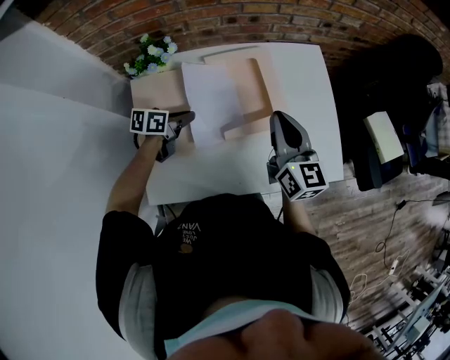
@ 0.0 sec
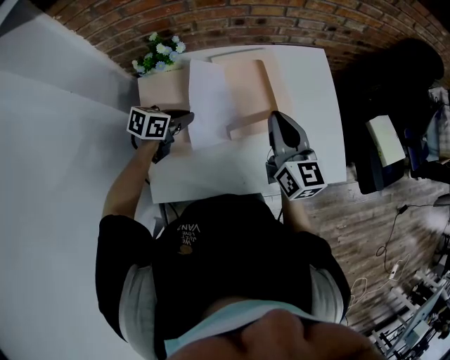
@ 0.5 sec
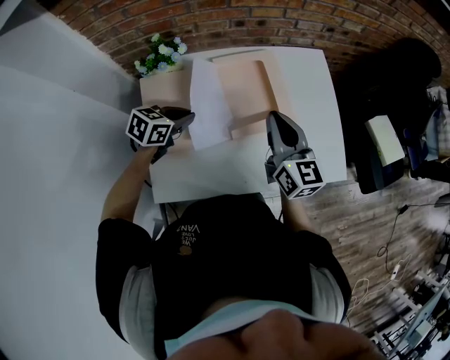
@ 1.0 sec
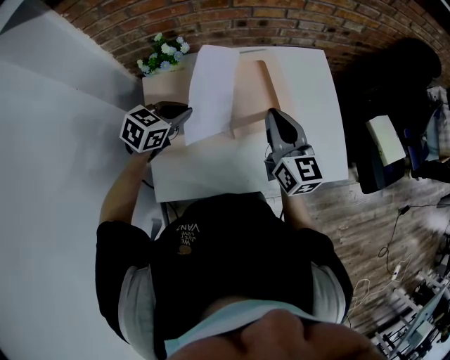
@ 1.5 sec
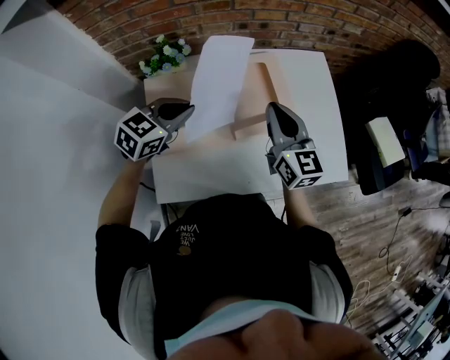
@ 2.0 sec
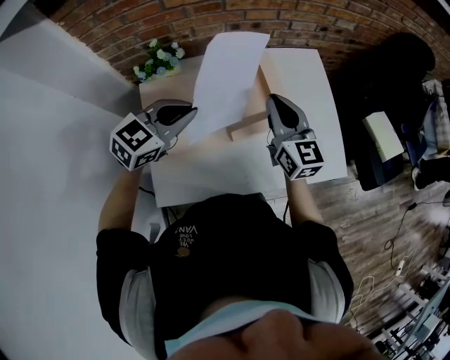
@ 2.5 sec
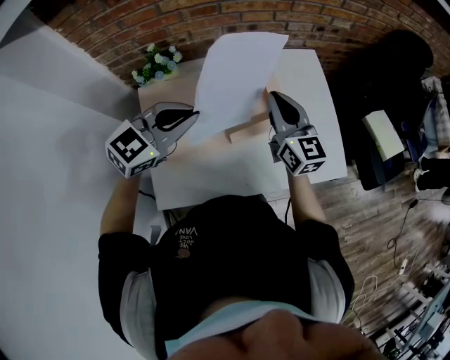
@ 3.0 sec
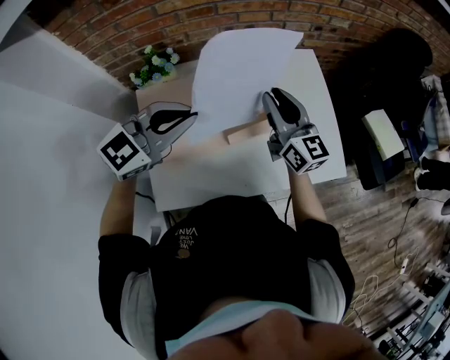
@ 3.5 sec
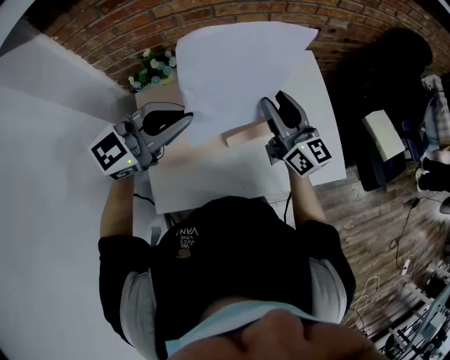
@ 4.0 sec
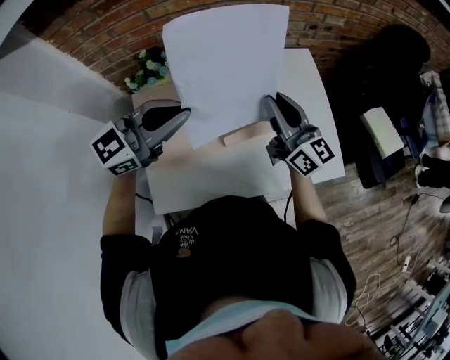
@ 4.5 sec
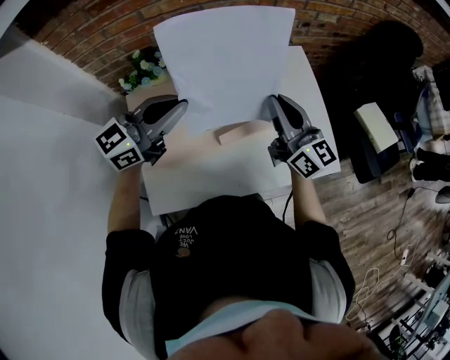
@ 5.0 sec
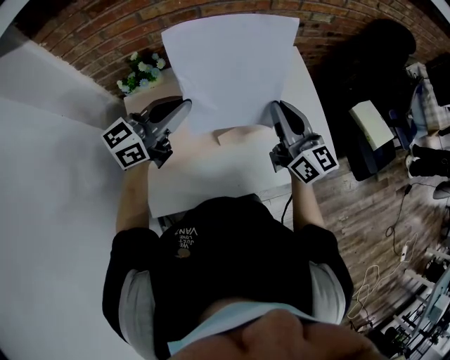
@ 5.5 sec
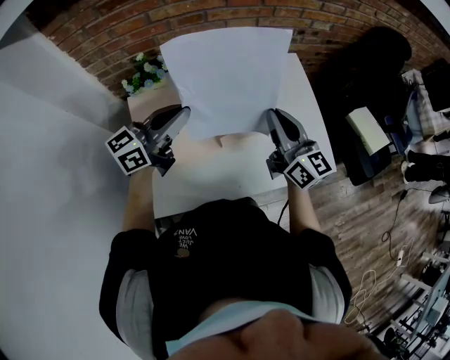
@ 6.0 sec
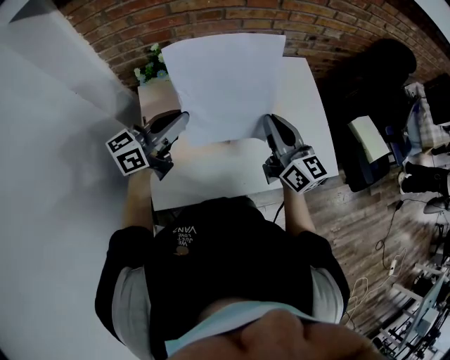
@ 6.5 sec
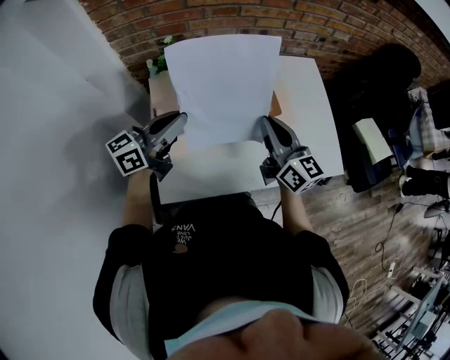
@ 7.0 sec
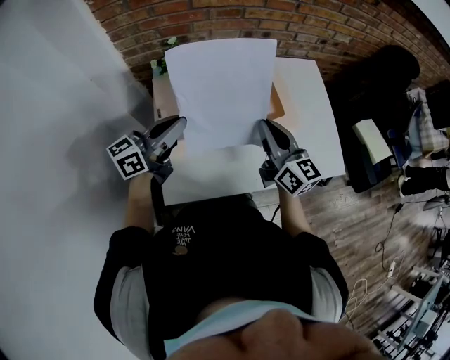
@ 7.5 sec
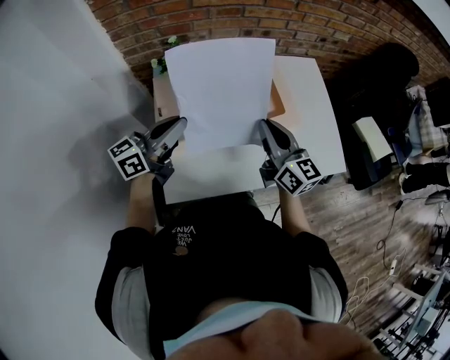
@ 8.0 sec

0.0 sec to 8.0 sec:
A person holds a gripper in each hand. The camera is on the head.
0.0 sec to 2.0 sec: The left gripper goes some 15 cm upward, and twists about 50 degrees clockwise, seen from behind.
2.0 sec to 4.0 sec: The right gripper opens its fingers. Meanwhile the left gripper travels upward and to the right by about 15 cm, and rotates some 30 degrees.
4.0 sec to 6.0 sec: The left gripper heads downward, covering approximately 5 cm, and swivels about 30 degrees, while the right gripper changes place by some 5 cm, and closes up.
6.0 sec to 8.0 sec: The two grippers go about 10 cm to the left and backward.

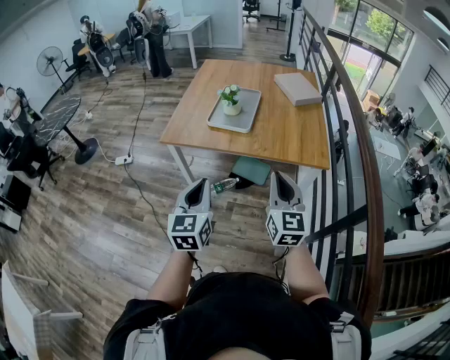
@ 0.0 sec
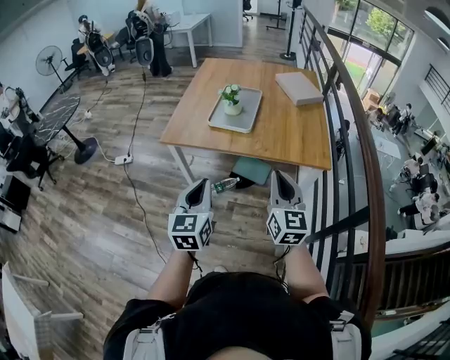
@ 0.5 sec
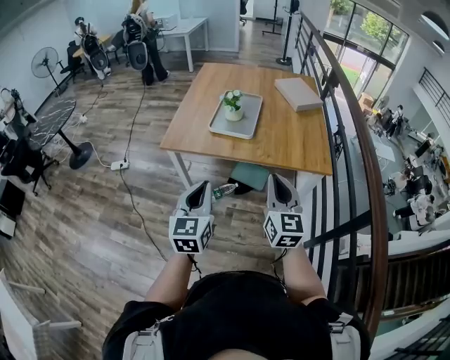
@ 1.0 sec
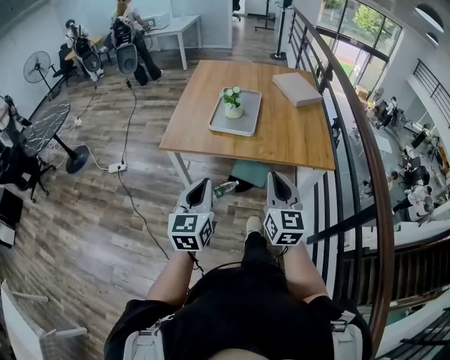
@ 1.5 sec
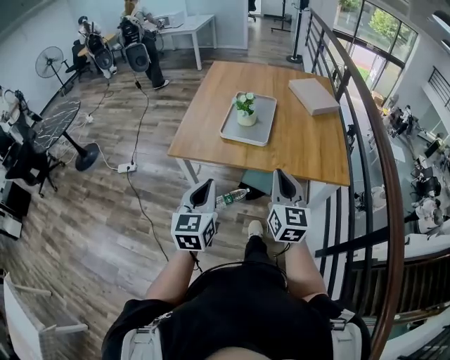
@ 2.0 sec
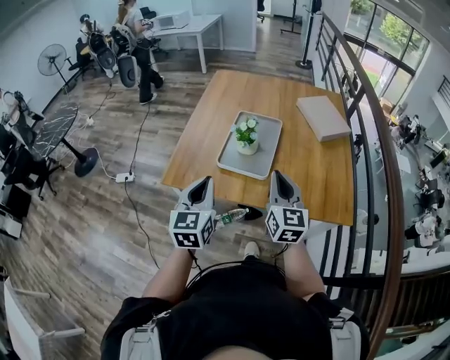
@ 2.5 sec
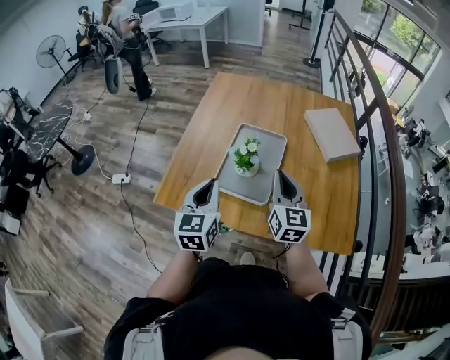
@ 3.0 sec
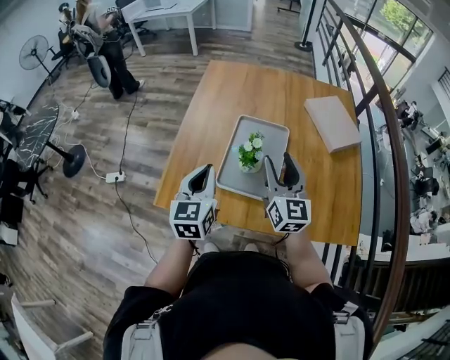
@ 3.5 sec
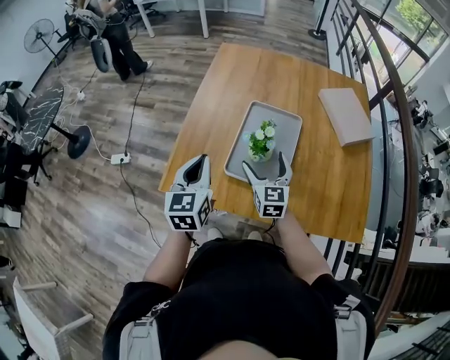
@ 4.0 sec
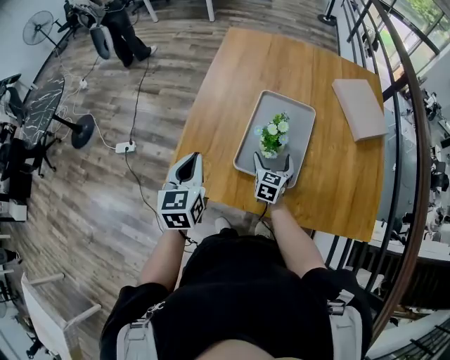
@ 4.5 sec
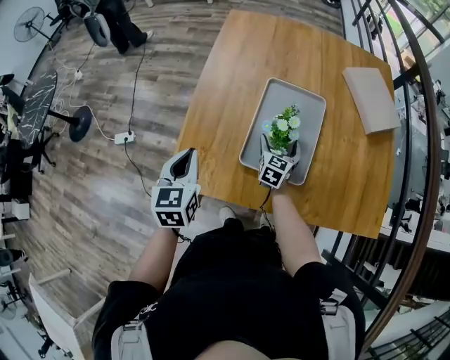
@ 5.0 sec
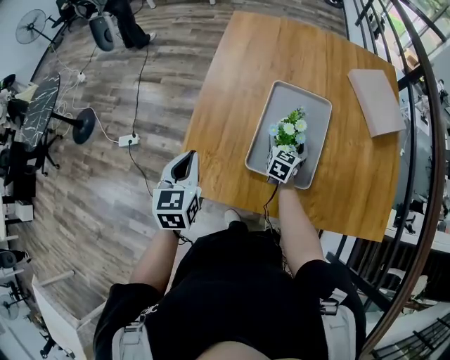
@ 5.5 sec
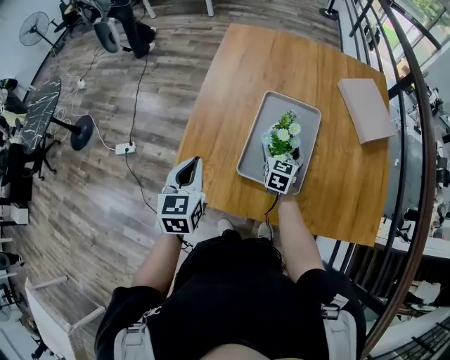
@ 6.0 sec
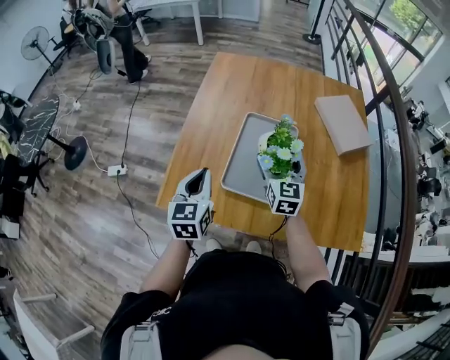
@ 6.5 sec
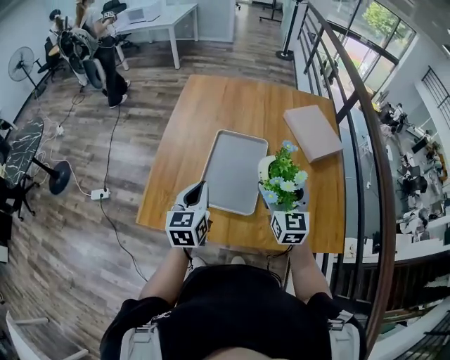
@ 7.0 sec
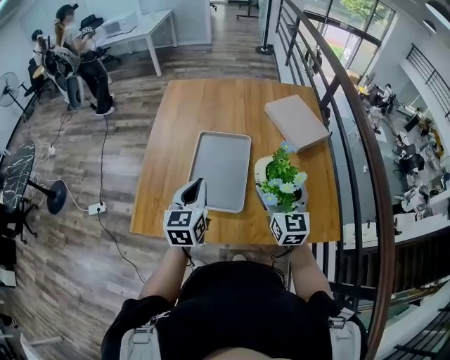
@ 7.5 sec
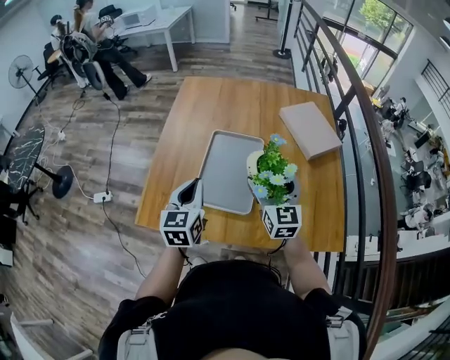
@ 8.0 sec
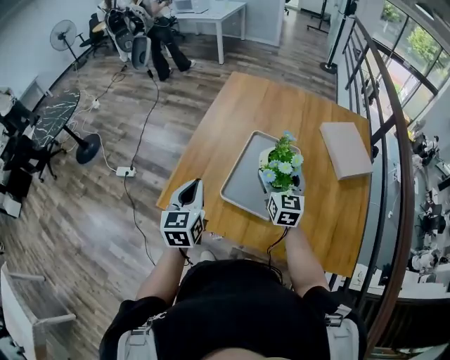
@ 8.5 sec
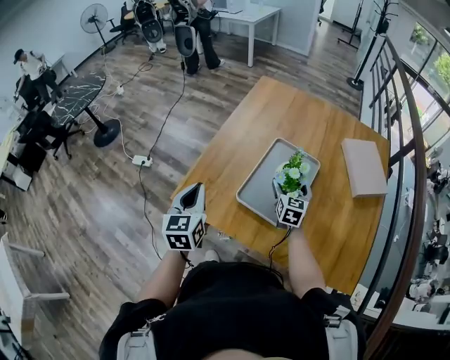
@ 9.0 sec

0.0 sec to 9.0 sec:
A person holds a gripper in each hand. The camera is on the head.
0.0 sec to 2.0 sec: The grippers both shift forward and to the left by approximately 15 cm.
2.0 sec to 4.5 sec: Both grippers are carried forward, approximately 50 cm. The right gripper moves downward, roughly 25 cm, changes its angle by about 30 degrees, and opens up.
4.5 sec to 7.0 sec: The right gripper goes roughly 25 cm upward and to the right, and changes its angle by roughly 20 degrees; the left gripper heads to the right, covering about 15 cm.
7.0 sec to 9.0 sec: The left gripper heads to the left and backward, covering about 15 cm, and rotates about 20 degrees; the right gripper travels downward, forward and to the left by about 20 cm.

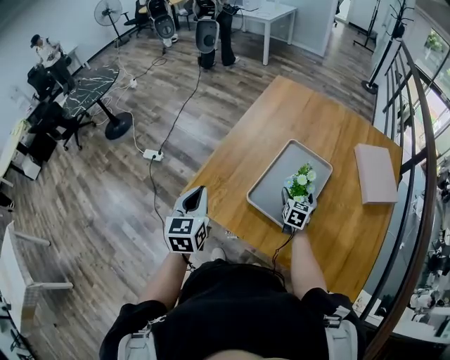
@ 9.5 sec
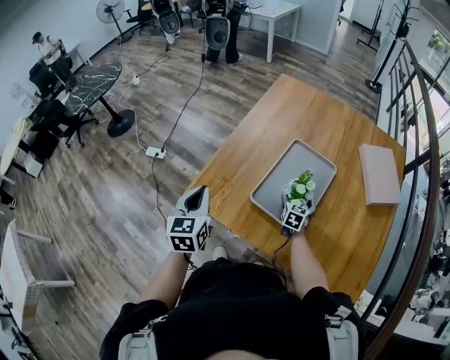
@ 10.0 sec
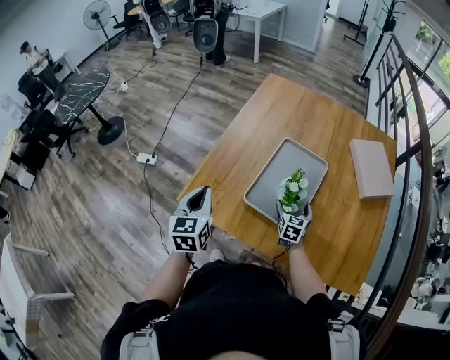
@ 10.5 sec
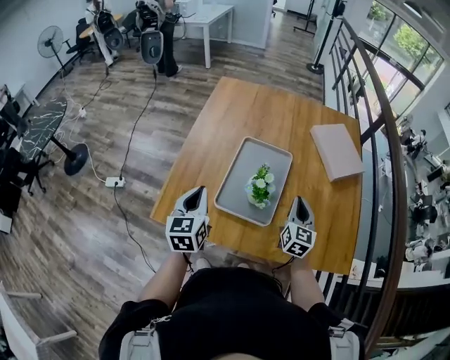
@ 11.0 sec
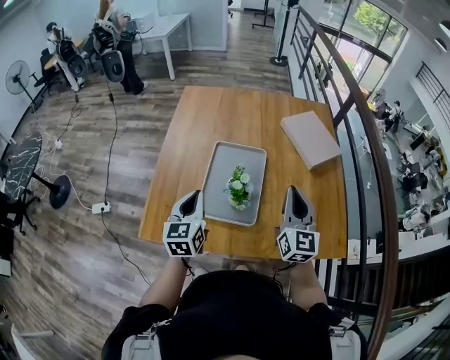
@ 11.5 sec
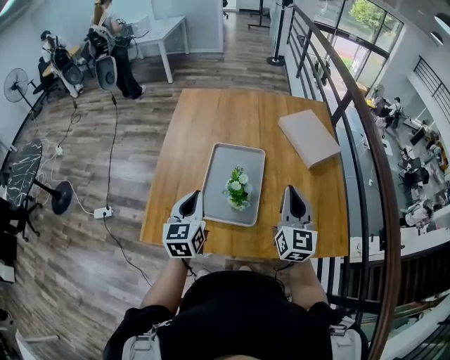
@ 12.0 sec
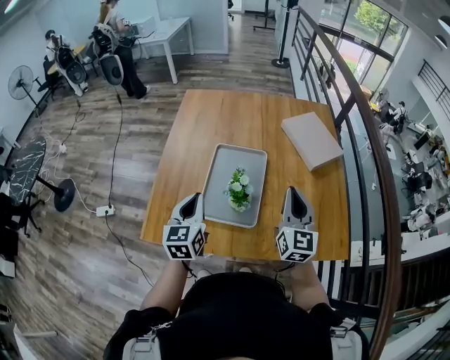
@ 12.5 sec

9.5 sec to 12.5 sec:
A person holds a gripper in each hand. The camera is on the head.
9.5 sec to 11.0 sec: The left gripper is displaced to the right and forward by approximately 10 cm. The right gripper is displaced upward, backward and to the right by some 20 cm, rotates roughly 20 degrees, and closes.
11.0 sec to 12.5 sec: The right gripper is displaced upward by roughly 10 cm; the left gripper heads to the right, covering about 5 cm.

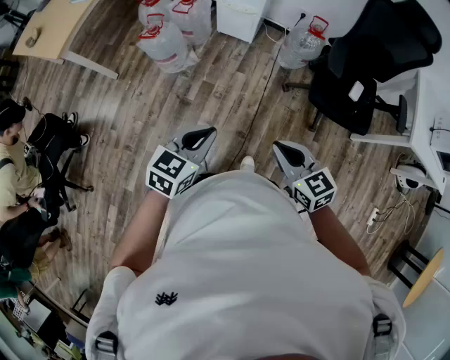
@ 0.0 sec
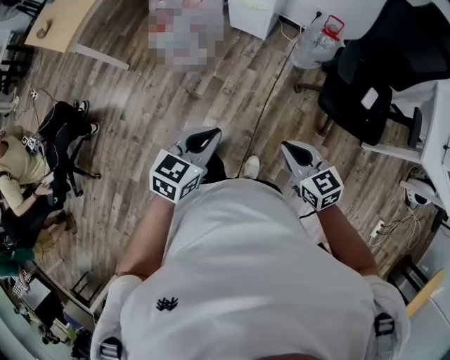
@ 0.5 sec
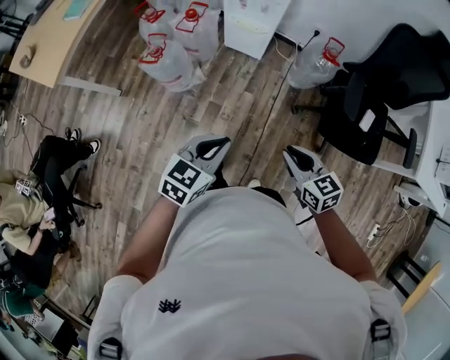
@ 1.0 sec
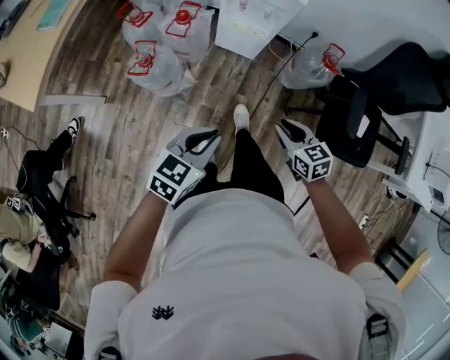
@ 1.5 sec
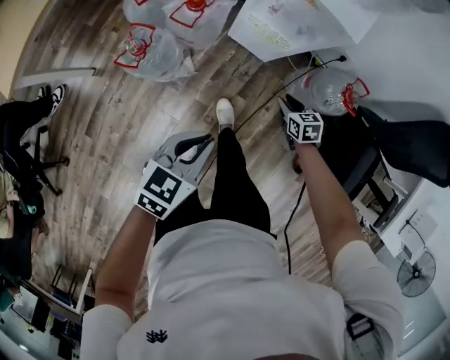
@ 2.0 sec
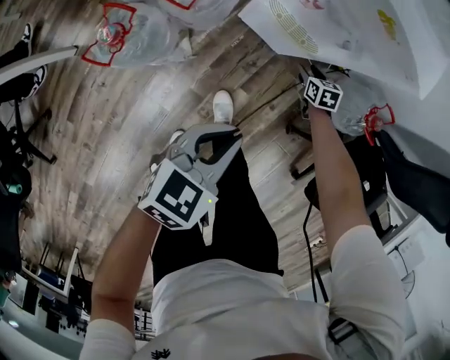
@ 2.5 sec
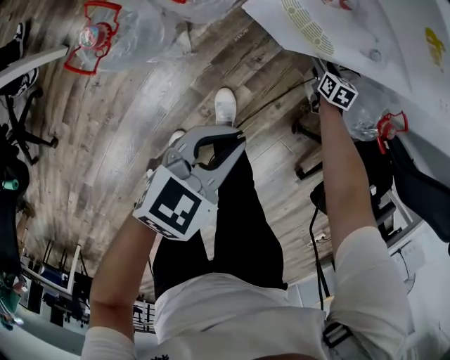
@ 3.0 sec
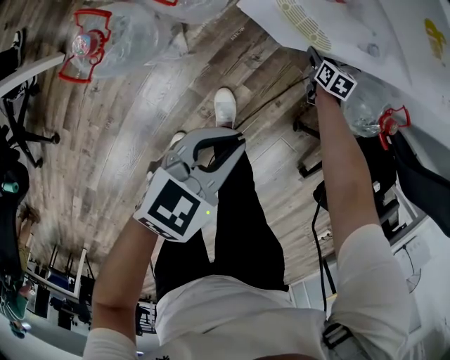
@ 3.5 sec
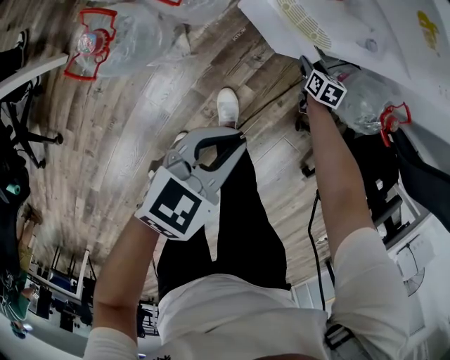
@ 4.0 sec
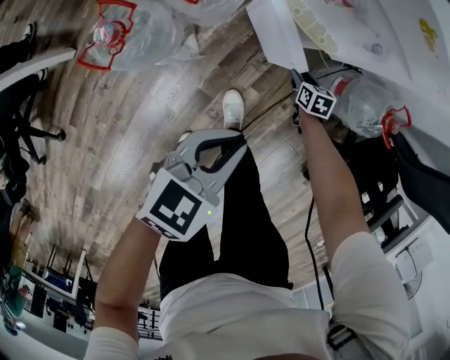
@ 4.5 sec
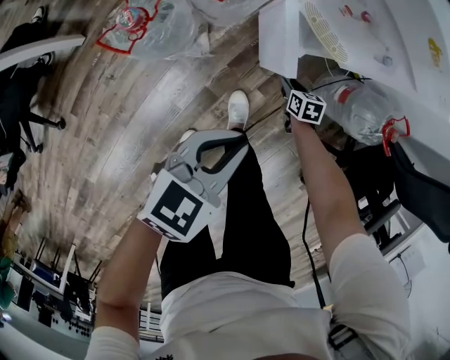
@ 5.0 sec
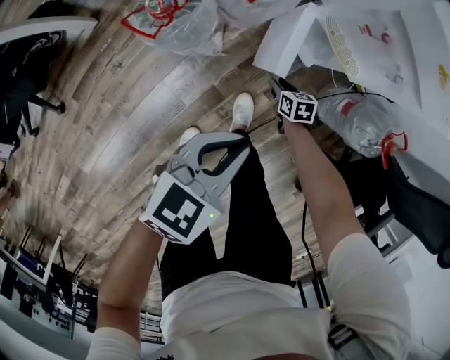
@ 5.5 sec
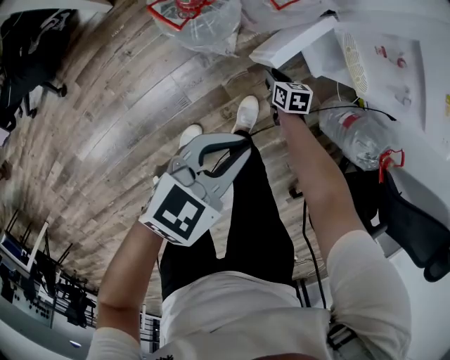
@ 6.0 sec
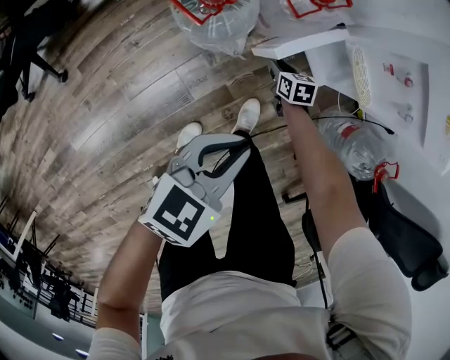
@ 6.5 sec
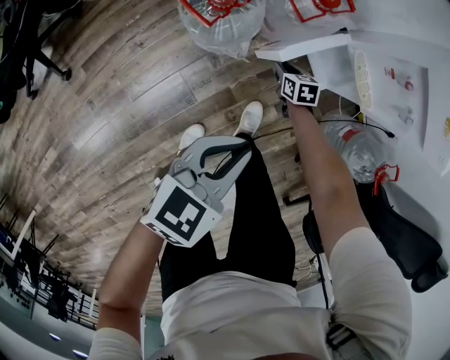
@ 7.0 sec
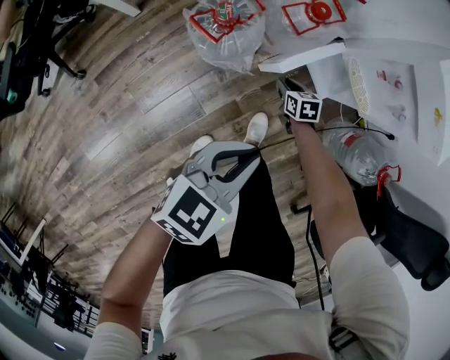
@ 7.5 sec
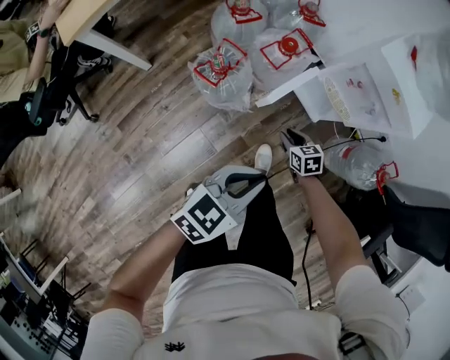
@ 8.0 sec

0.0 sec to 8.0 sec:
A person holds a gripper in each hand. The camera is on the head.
0.0 sec to 2.0 sec: The pair of grippers is taken forward, some 50 cm. The right gripper shifts some 35 cm downward, swivels approximately 30 degrees, and opens up.
2.0 sec to 4.0 sec: The left gripper is displaced downward and forward by some 20 cm, while the right gripper moves downward and forward, about 30 cm, and opens up.
4.0 sec to 6.0 sec: The left gripper moves about 15 cm, while the right gripper changes place by about 30 cm, turns by about 30 degrees, and closes its fingers.
6.0 sec to 8.0 sec: The left gripper moves upward, roughly 10 cm; the right gripper is displaced upward by about 20 cm.
